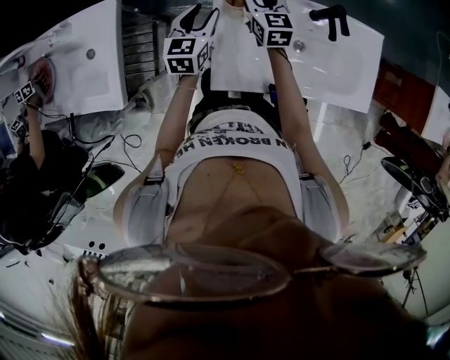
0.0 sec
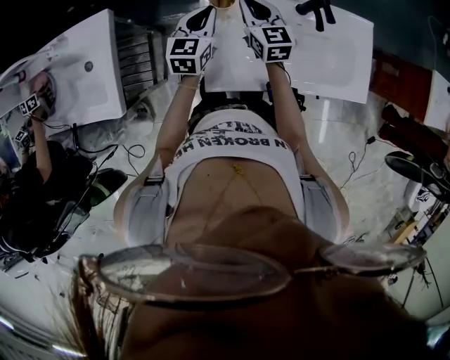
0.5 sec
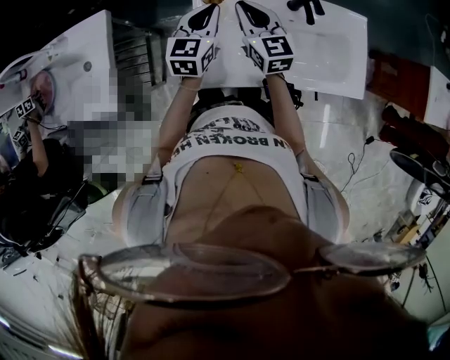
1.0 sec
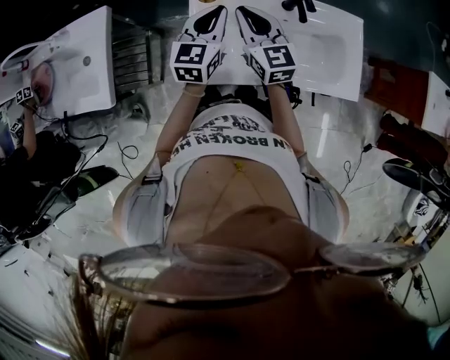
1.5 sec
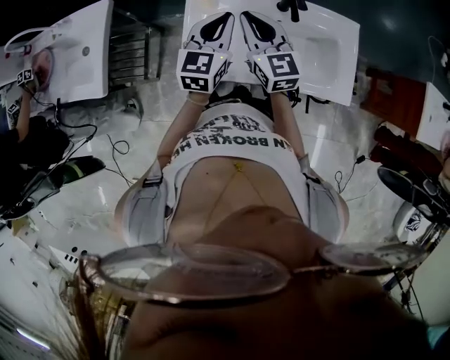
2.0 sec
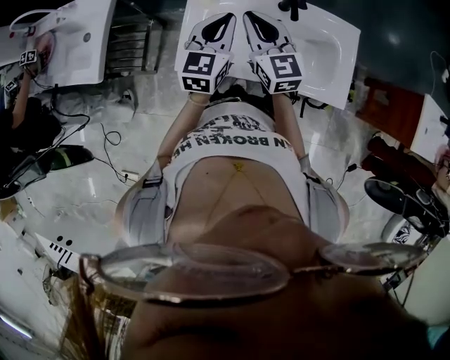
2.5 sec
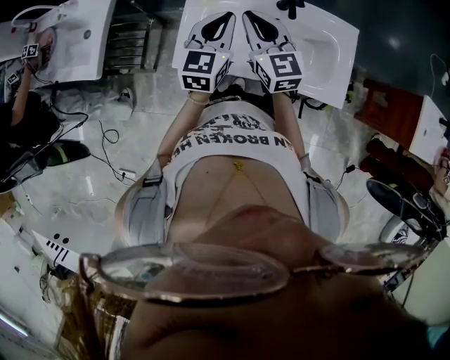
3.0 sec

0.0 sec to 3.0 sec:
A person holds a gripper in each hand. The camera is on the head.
0.0 sec to 1.5 sec: The left gripper goes roughly 20 cm to the right, upward and backward, and closes up; the right gripper is displaced backward, upward and to the right by about 20 cm, and closes.
1.5 sec to 3.0 sec: The right gripper moves backward, some 10 cm; the left gripper goes about 10 cm backward and to the right.

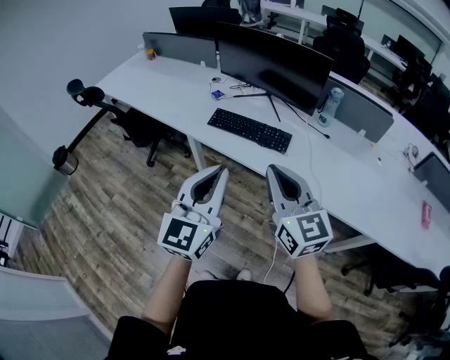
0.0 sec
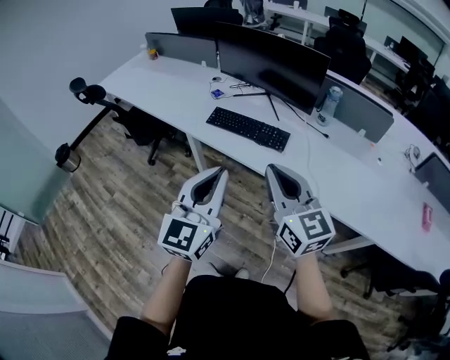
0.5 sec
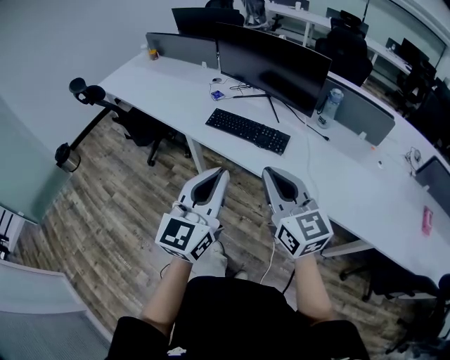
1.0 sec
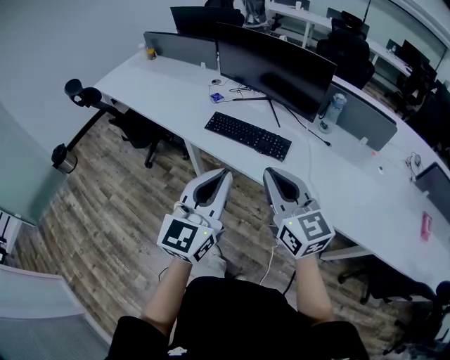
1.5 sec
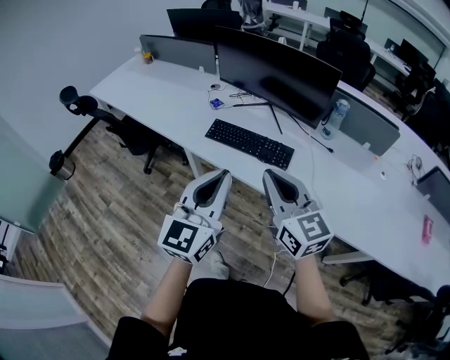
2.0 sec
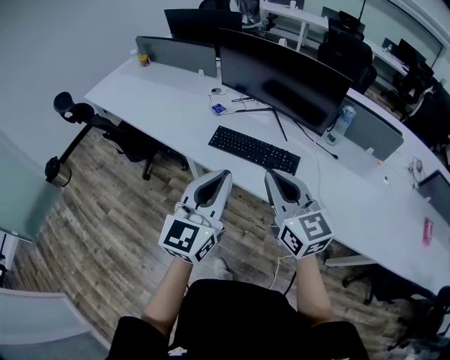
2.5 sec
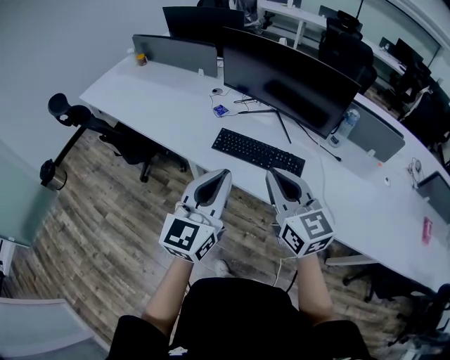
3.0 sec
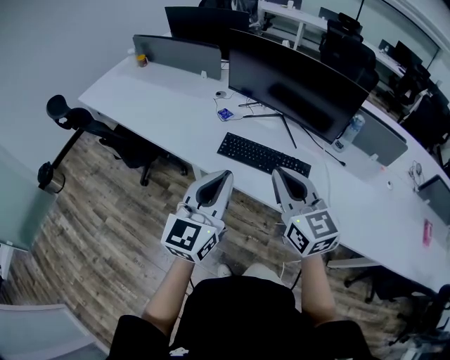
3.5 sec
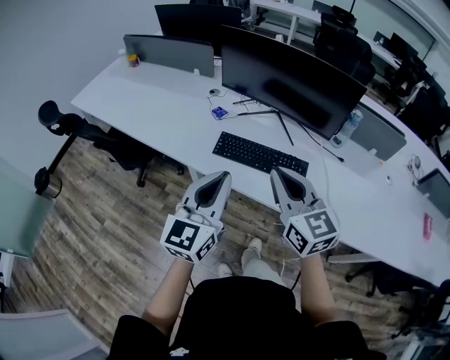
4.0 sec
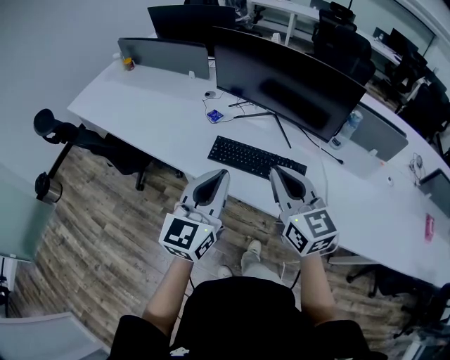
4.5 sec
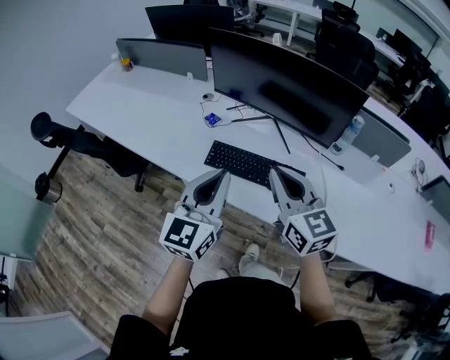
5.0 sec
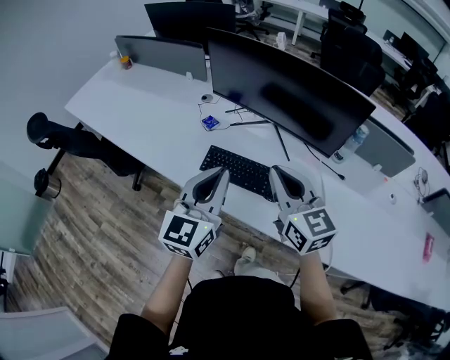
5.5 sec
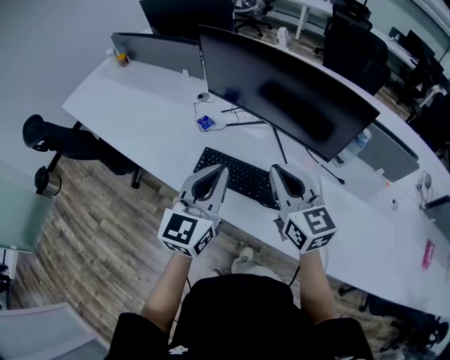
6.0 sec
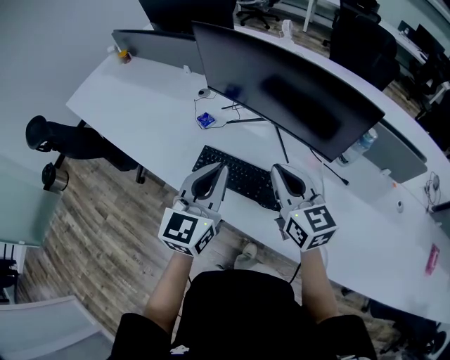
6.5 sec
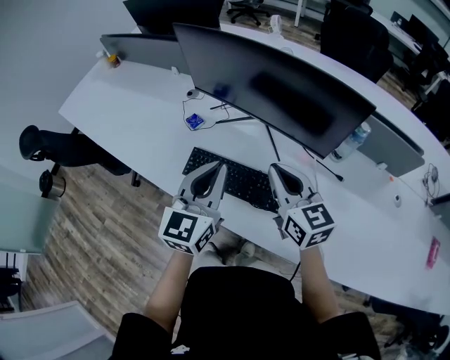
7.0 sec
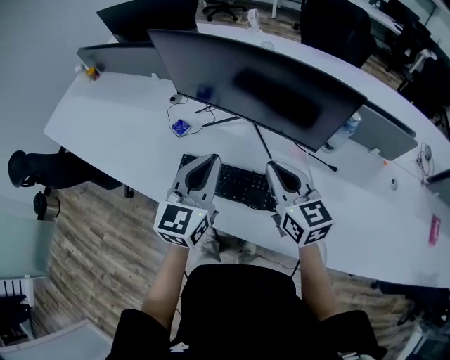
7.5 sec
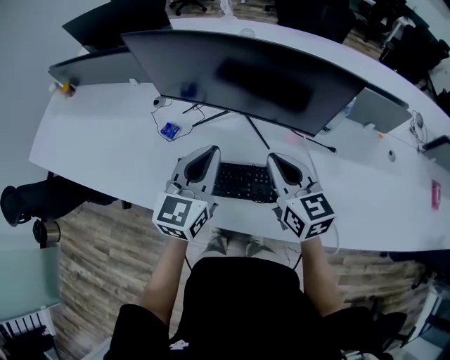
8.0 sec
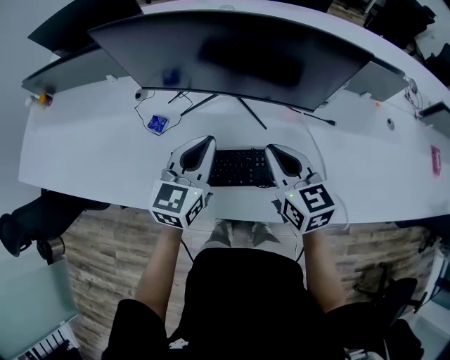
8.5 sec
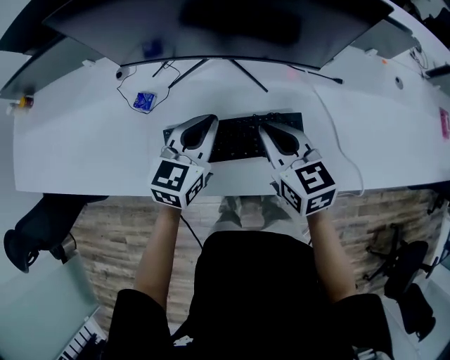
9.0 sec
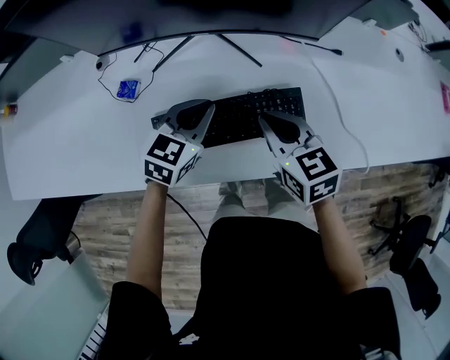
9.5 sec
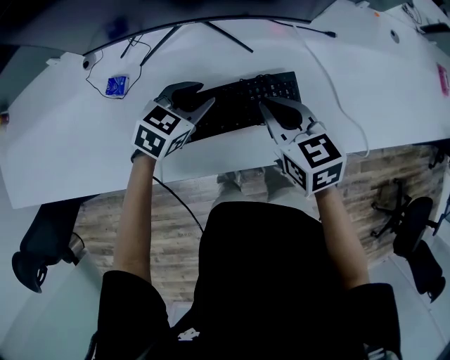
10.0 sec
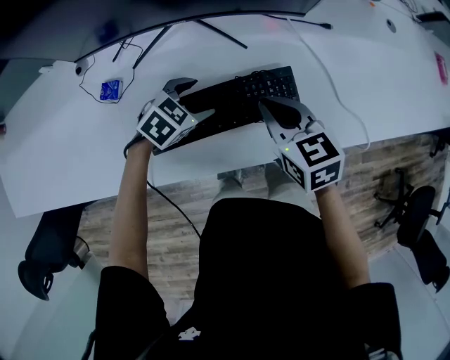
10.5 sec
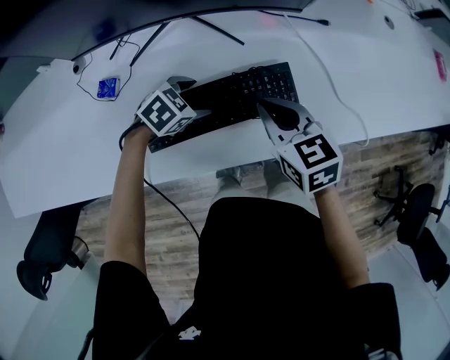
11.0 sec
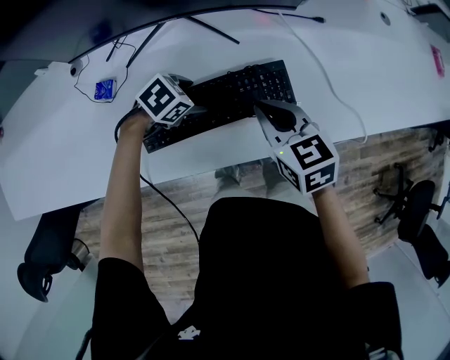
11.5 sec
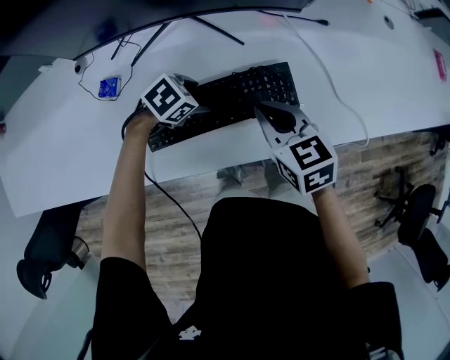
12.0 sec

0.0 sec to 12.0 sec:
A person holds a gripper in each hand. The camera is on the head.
0.0 sec to 2.0 sec: Both grippers travel together forward, approximately 10 cm.
2.0 sec to 4.0 sec: Both grippers travel together forward and to the left, about 15 cm.
4.0 sec to 6.0 sec: The two grippers go roughly 20 cm forward and to the right.
6.0 sec to 8.0 sec: The left gripper heads forward and to the right, covering about 15 cm, while the right gripper goes roughly 10 cm forward, to the right and downward.
8.0 sec to 10.0 sec: The right gripper shifts some 15 cm downward, and swivels about 20 degrees; the left gripper travels downward by about 25 cm, angles its fingers downward, by about 30 degrees, and opens up.
10.0 sec to 12.0 sec: The left gripper travels downward by about 10 cm, swivels about 30 degrees, and opens.

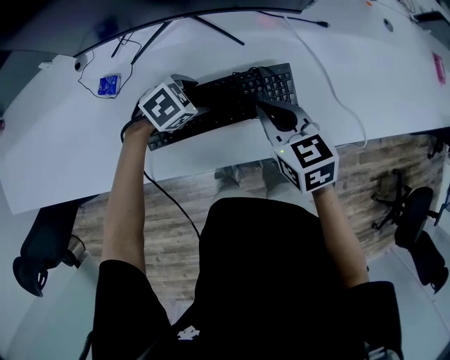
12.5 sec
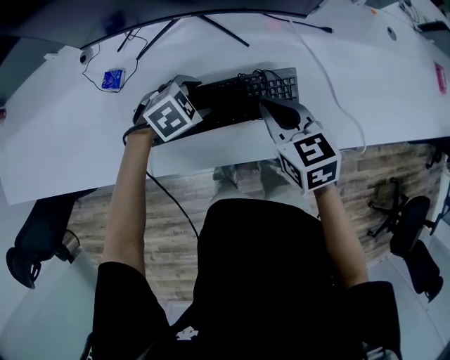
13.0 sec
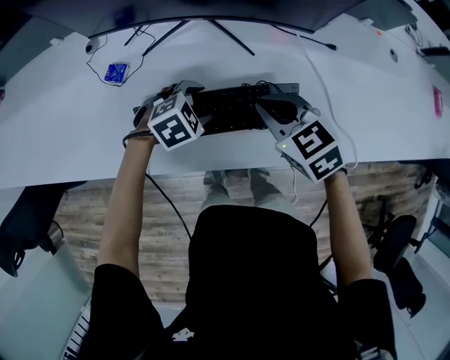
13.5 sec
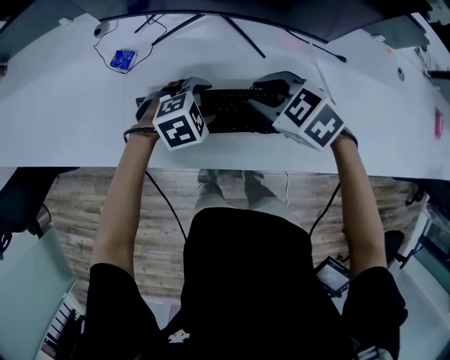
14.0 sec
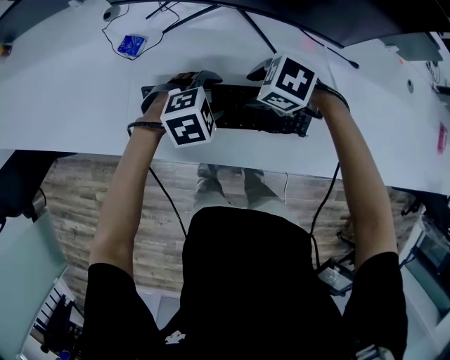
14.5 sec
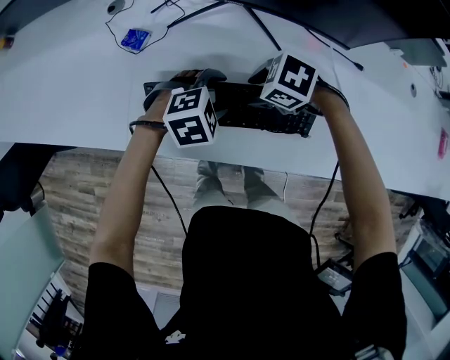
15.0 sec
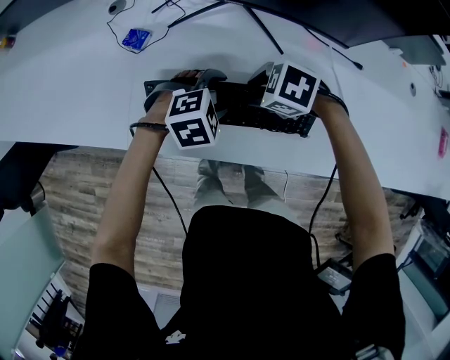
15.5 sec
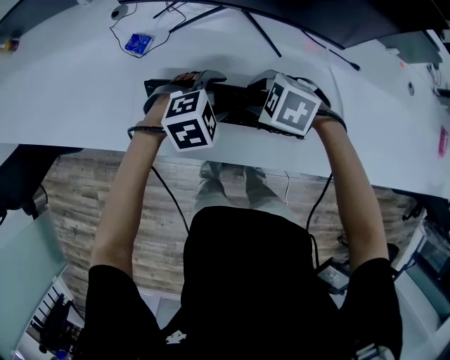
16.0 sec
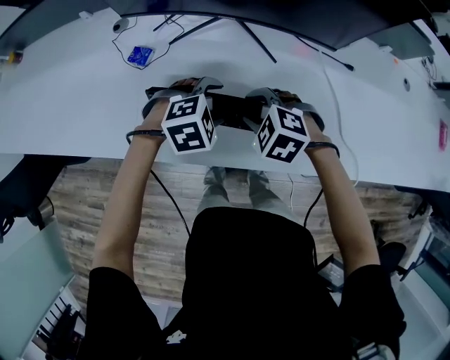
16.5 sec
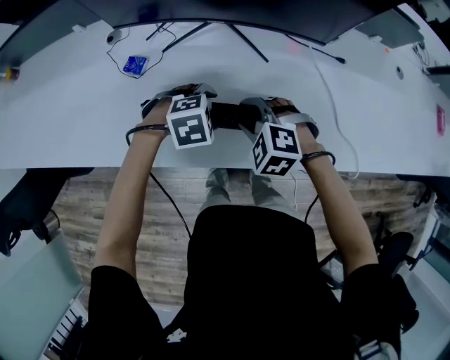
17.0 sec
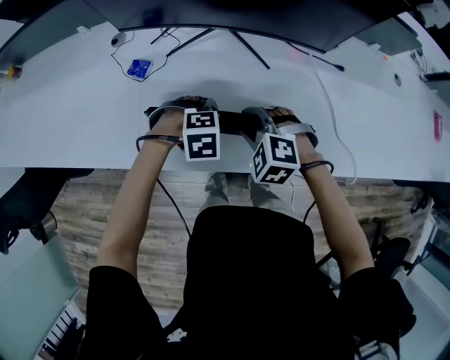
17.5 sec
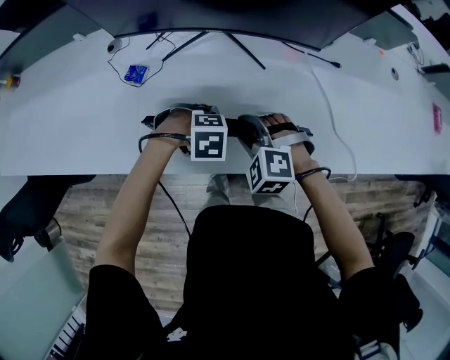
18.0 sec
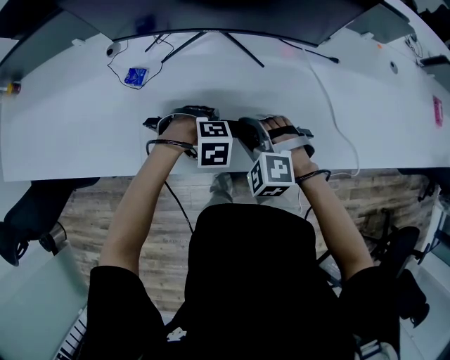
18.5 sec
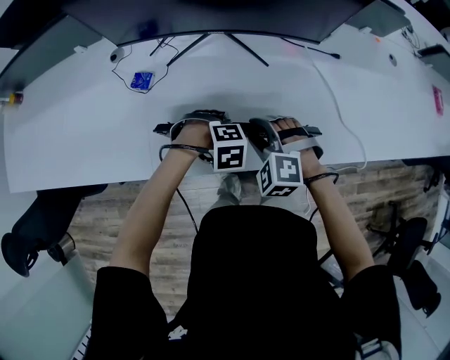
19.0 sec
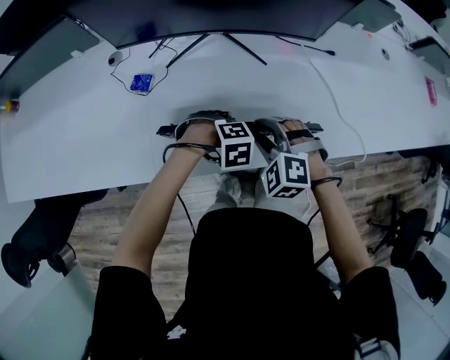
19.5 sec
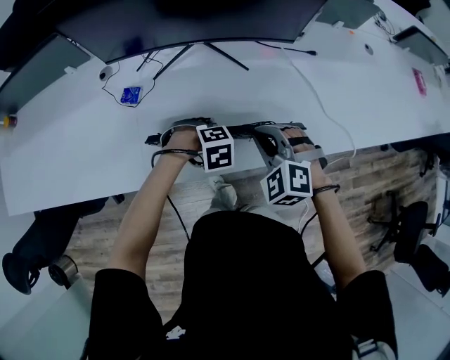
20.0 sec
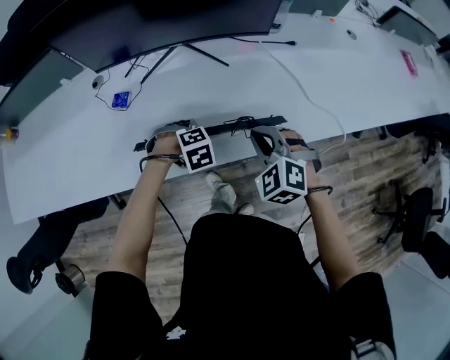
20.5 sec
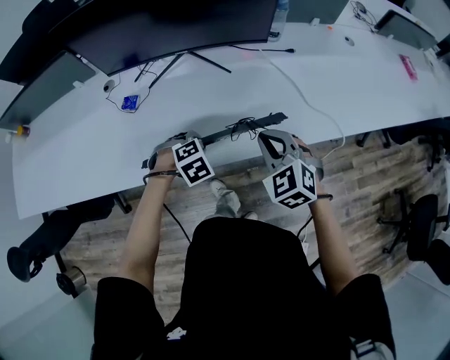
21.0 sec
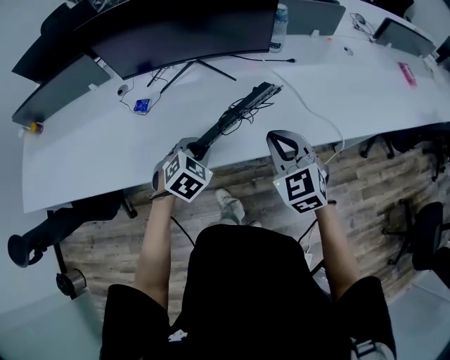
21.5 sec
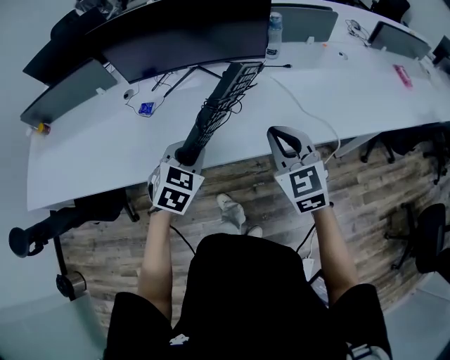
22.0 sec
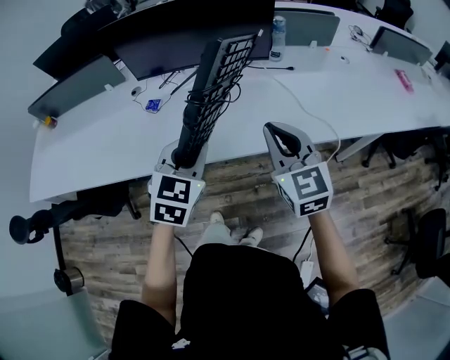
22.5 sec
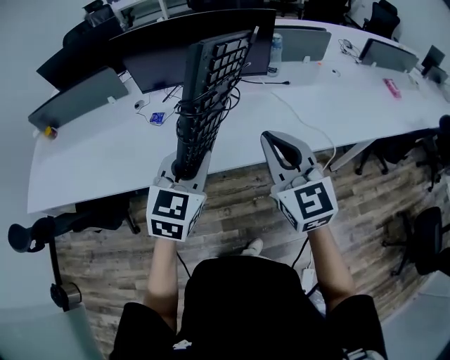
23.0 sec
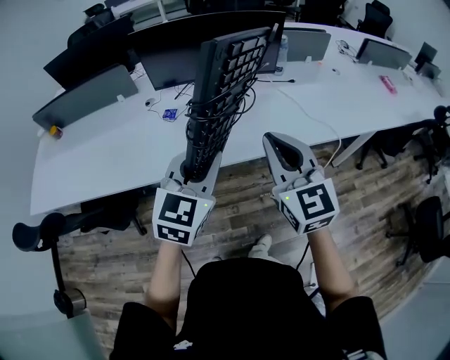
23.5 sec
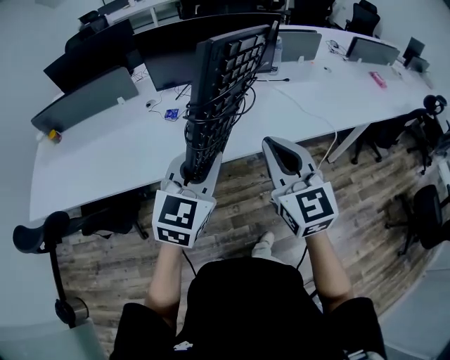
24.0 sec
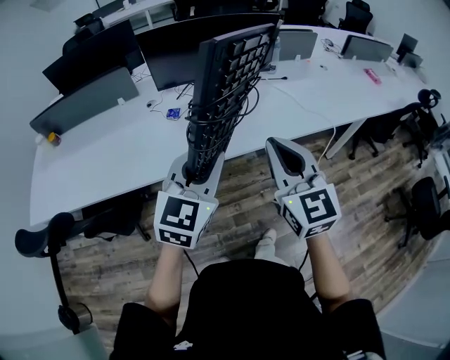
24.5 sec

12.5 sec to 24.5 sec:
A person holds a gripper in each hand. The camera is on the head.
12.5 sec to 14.5 sec: The right gripper changes place by about 10 cm, changes its angle by roughly 70 degrees, and opens its fingers.
14.5 sec to 16.5 sec: The right gripper turns by some 30 degrees.
16.5 sec to 18.5 sec: The left gripper travels downward by approximately 5 cm, rotates approximately 30 degrees, and closes up.
18.5 sec to 20.5 sec: The right gripper shifts by roughly 10 cm, turns by about 30 degrees, and closes.
20.5 sec to 22.5 sec: The grippers both shift upward by roughly 25 cm. The right gripper tips its fingers upward by some 30 degrees; the left gripper tips its fingers upward by approximately 50 degrees.
22.5 sec to 24.5 sec: Both grippers travel together backward, to the left and upward, some 25 cm. The left gripper rotates some 20 degrees.
